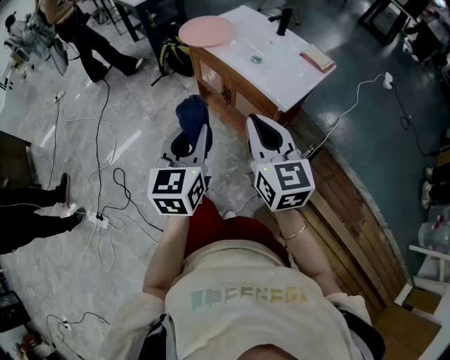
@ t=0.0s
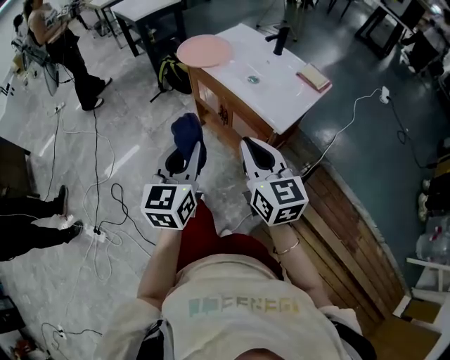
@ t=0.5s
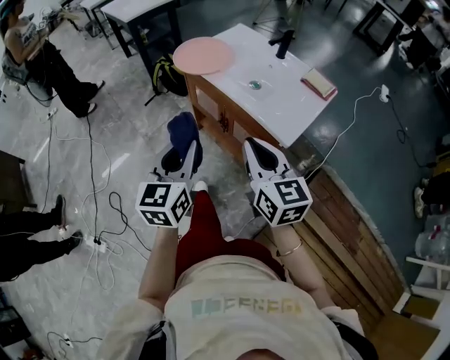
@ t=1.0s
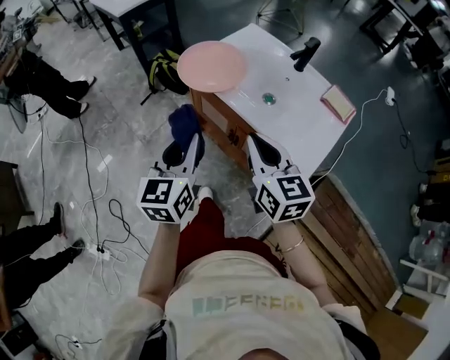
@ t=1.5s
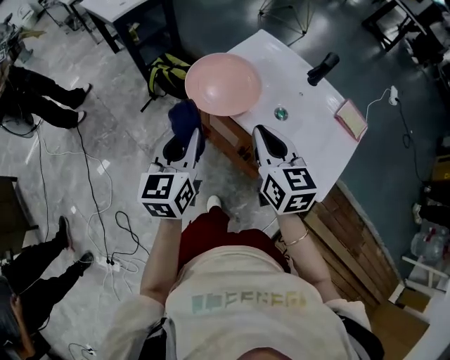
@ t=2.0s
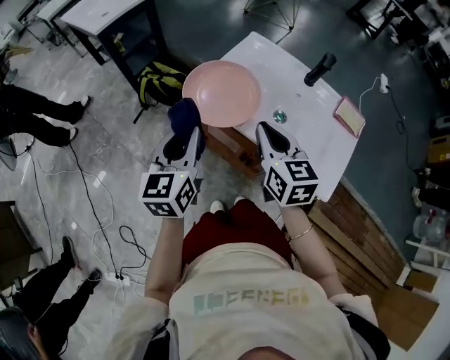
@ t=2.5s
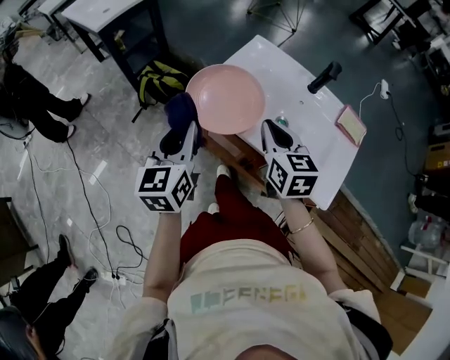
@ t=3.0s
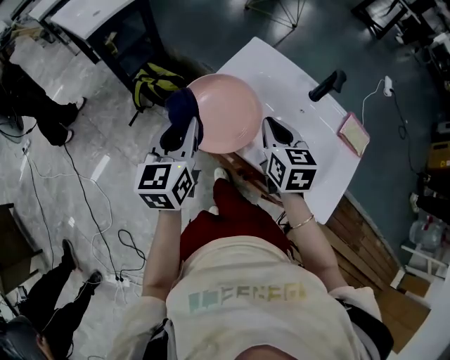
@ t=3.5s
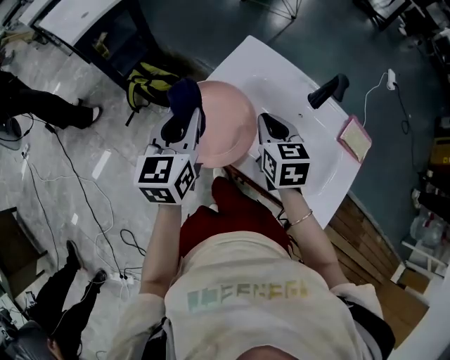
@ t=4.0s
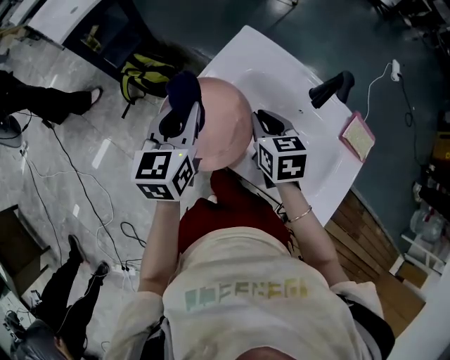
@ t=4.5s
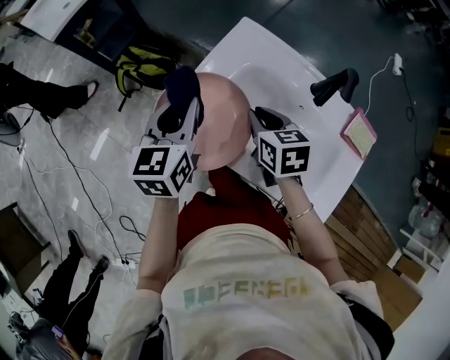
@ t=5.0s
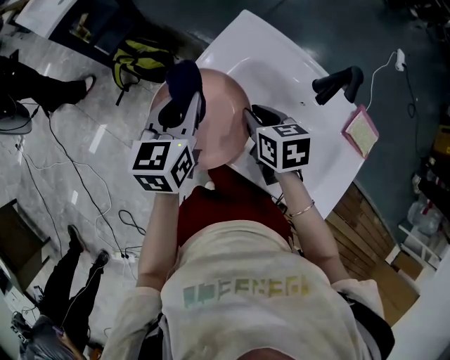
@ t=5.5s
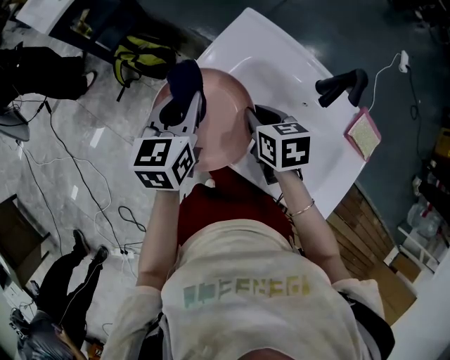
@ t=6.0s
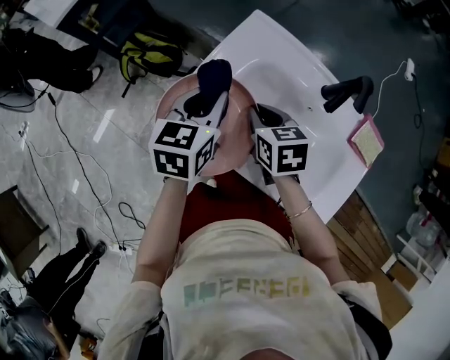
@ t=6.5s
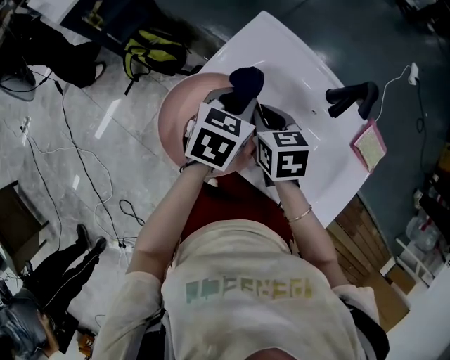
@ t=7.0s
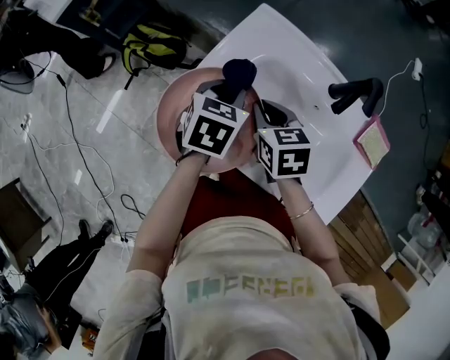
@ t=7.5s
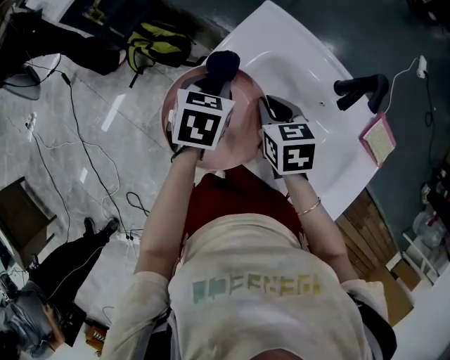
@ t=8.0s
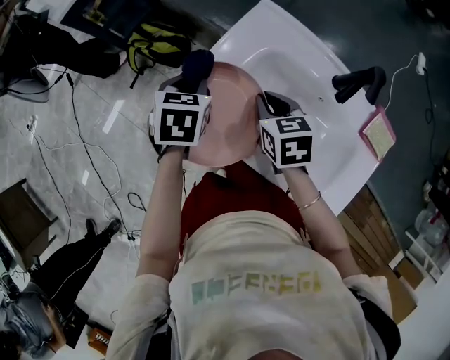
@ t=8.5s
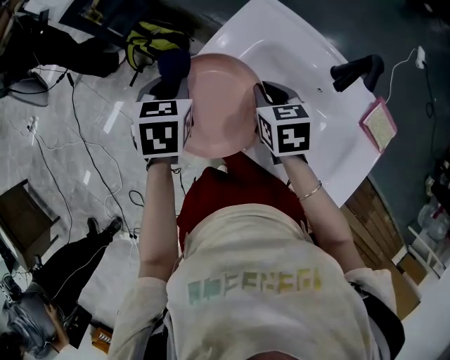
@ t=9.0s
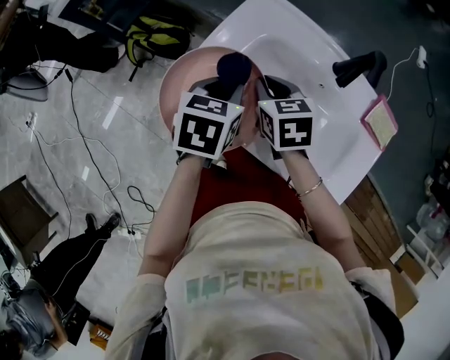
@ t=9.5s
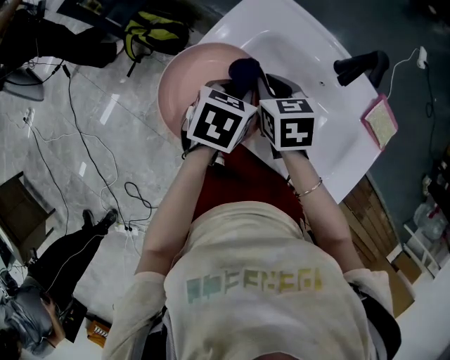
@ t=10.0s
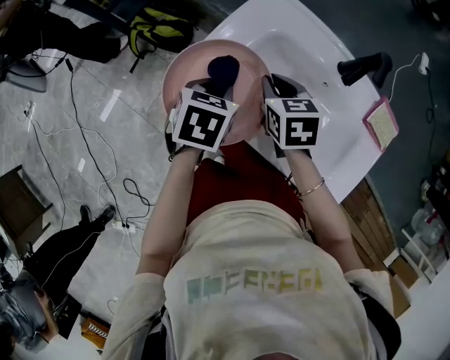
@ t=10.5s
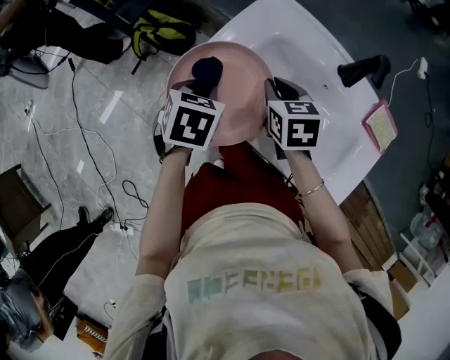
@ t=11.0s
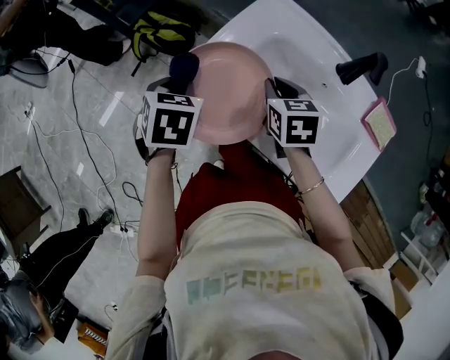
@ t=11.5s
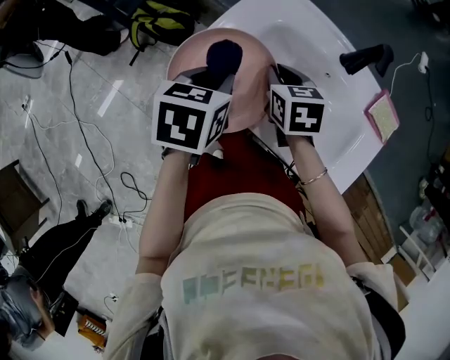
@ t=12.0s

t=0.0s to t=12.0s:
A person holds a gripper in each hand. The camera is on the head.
t=0.0s to t=2.0s: Both grippers are carried forward, roughly 40 cm.
t=2.0s to t=4.0s: Both grippers move forward, roughly 25 cm. The right gripper turns by approximately 20 degrees.
t=4.0s to t=6.0s: The left gripper moves downward and forward, about 10 cm, while the right gripper travels downward by about 10 cm, and rotates some 20 degrees.
t=6.0s to t=8.0s: The left gripper goes some 5 cm downward, travels to the right and back again, roughly 10 cm each way, and turns by roughly 30 degrees.
t=8.0s to t=10.0s: The left gripper shifts roughly 10 cm backward and to the right.
t=10.0s to t=12.0s: The left gripper shifts some 10 cm to the left and upward.

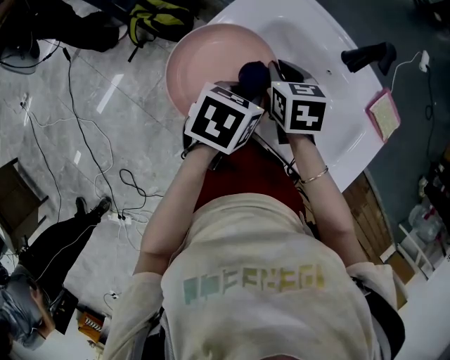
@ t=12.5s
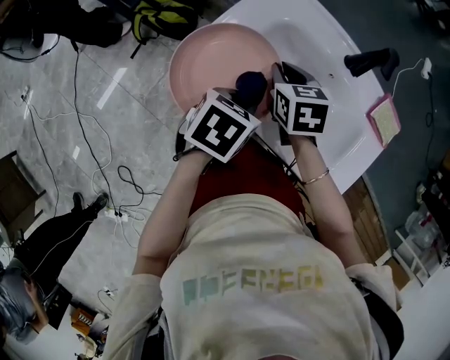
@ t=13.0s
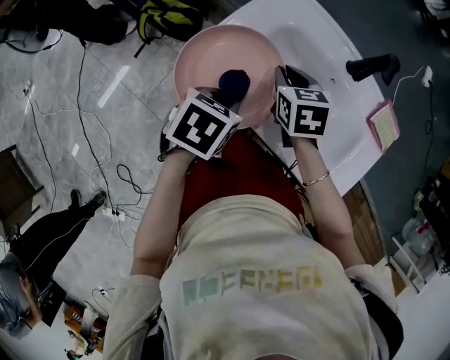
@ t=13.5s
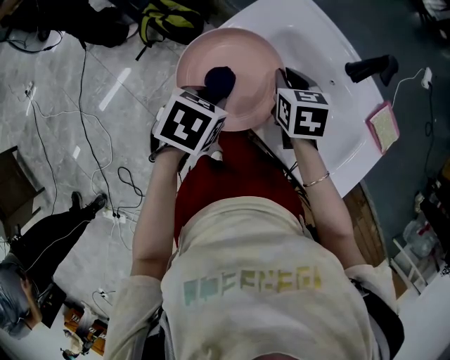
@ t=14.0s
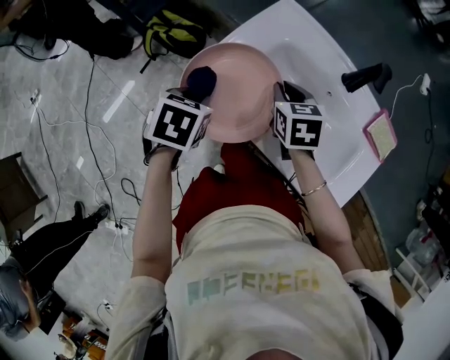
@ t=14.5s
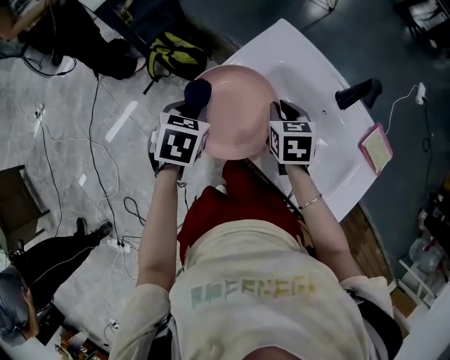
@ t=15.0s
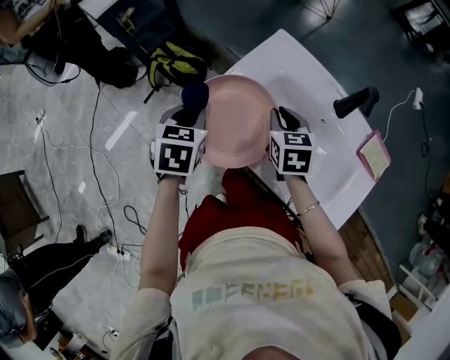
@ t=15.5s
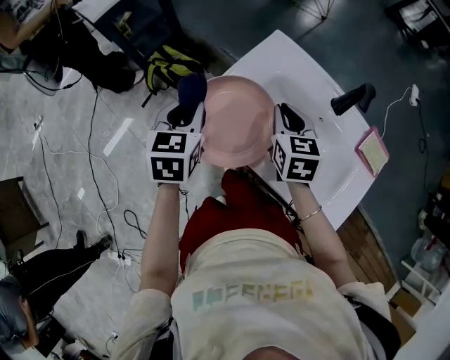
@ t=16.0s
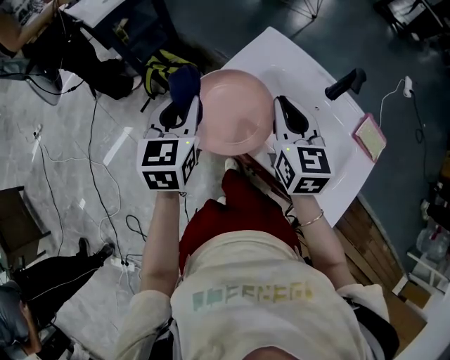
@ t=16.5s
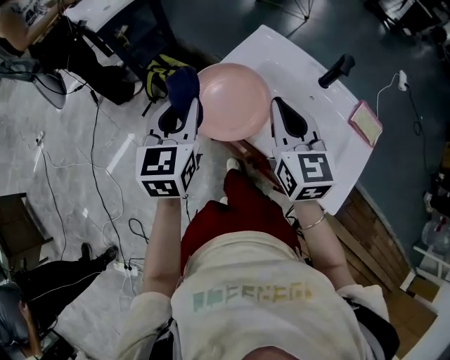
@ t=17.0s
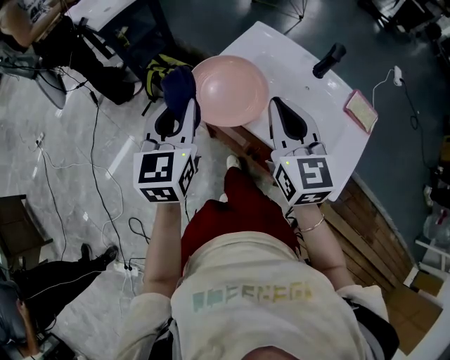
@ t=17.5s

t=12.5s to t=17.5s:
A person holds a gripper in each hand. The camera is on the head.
t=12.5s to t=15.0s: The left gripper goes about 15 cm to the left, and changes its angle by roughly 30 degrees.
t=15.0s to t=17.5s: The two grippers go about 25 cm upward and backward. The left gripper tips its fingers upward by some 40 degrees, while the right gripper angles its fingers upward, by some 40 degrees.

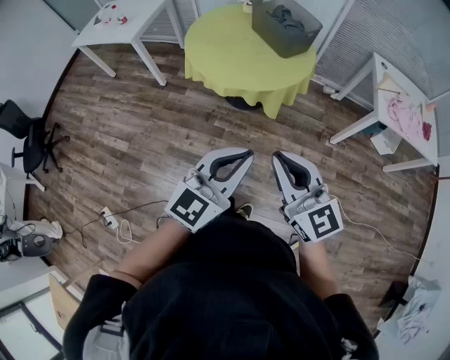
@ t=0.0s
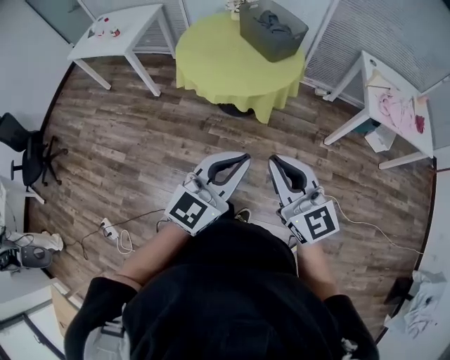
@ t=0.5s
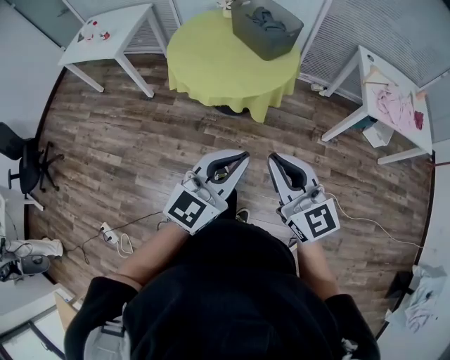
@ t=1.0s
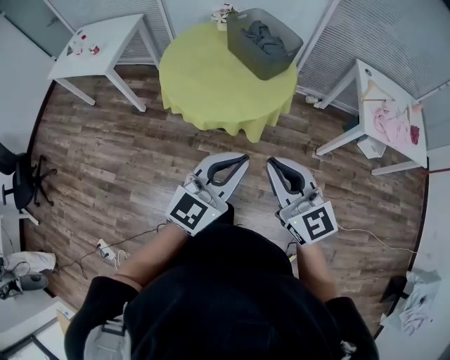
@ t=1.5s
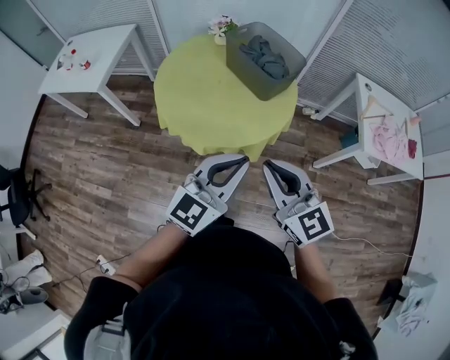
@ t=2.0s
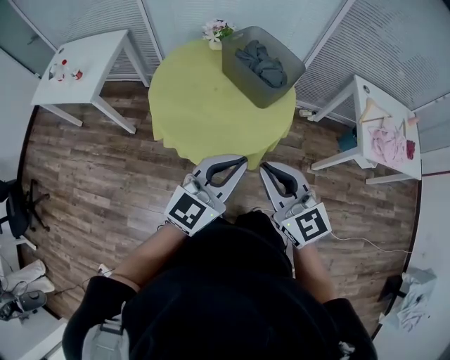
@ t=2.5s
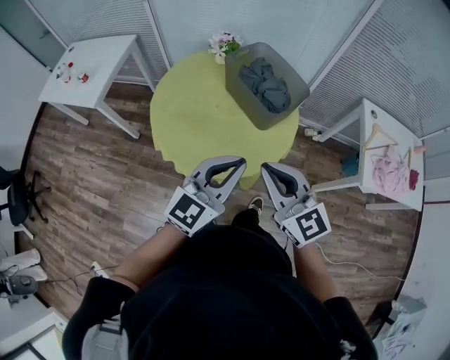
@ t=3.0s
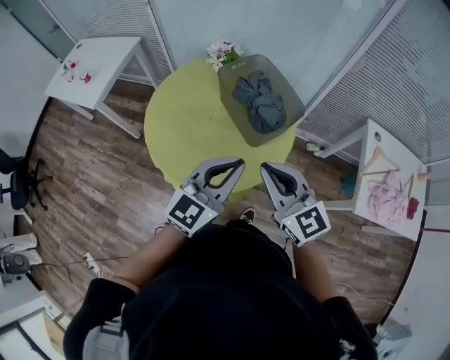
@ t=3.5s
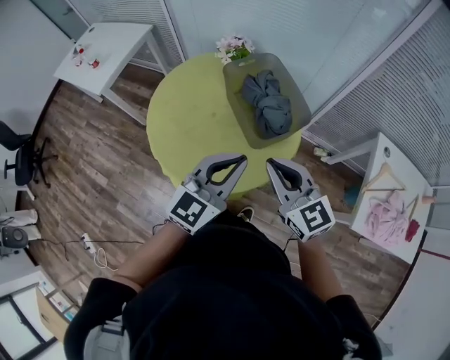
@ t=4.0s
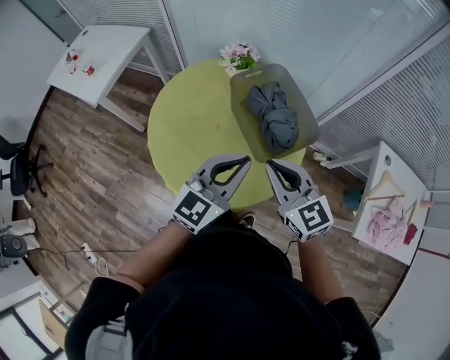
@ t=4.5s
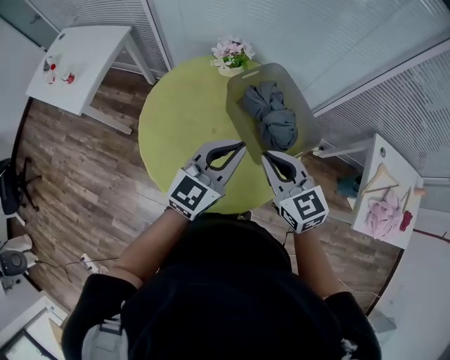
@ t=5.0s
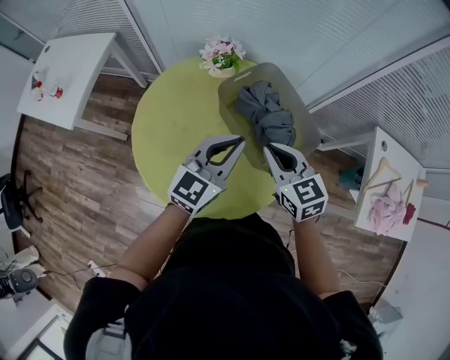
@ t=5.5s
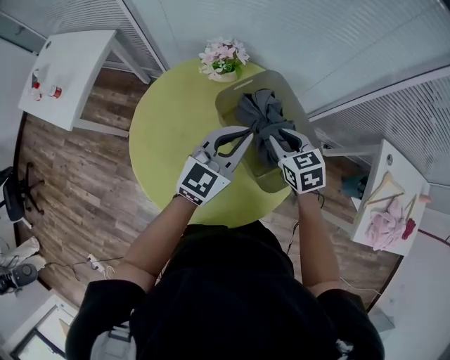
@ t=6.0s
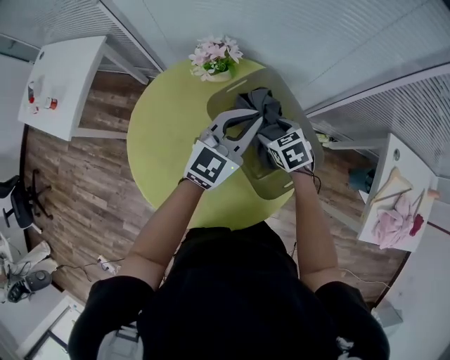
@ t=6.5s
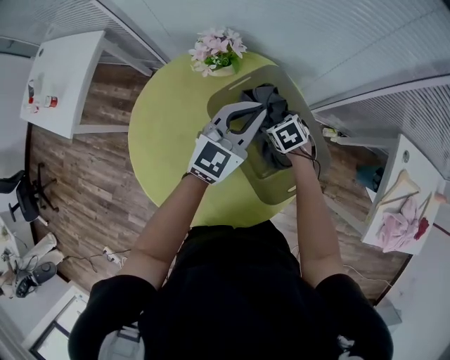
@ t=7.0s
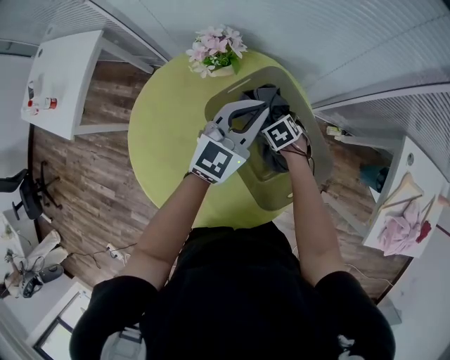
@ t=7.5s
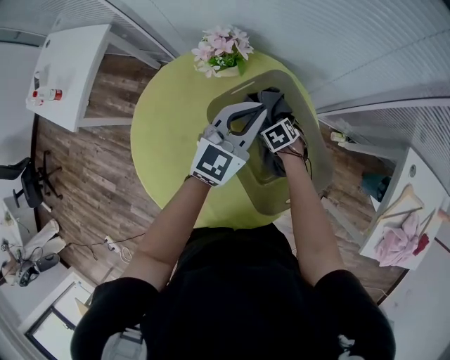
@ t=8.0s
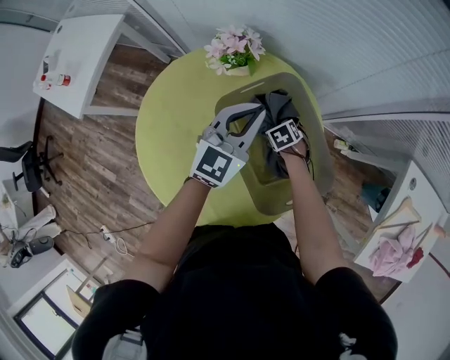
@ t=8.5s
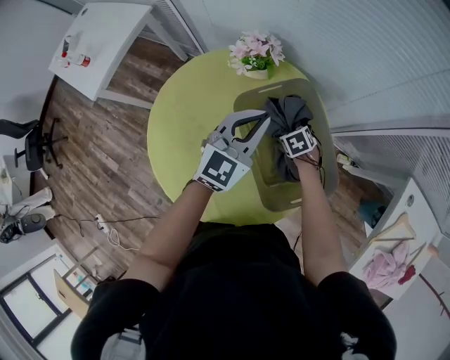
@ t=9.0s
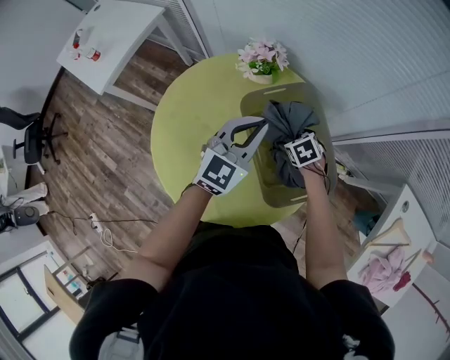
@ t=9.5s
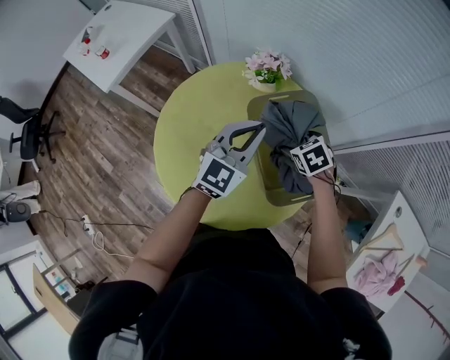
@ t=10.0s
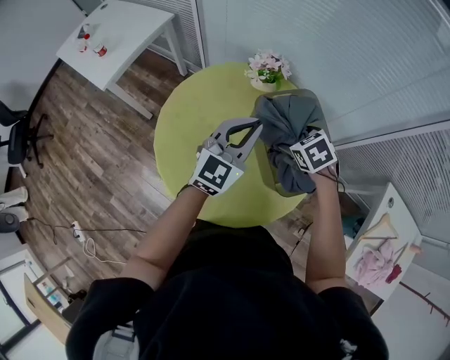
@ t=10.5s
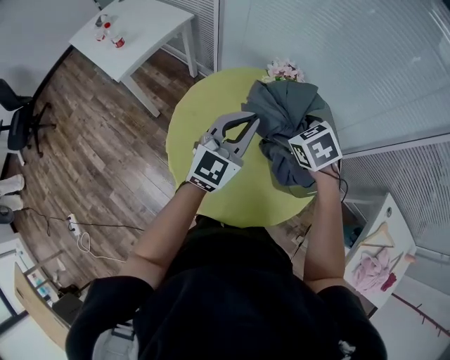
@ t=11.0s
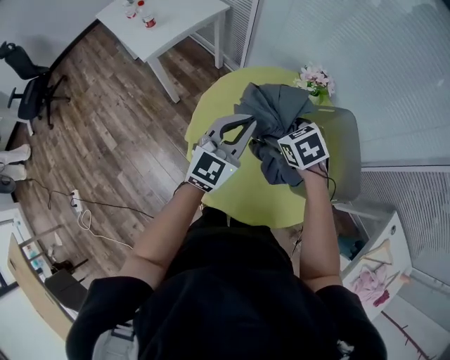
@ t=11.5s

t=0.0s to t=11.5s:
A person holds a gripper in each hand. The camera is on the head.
t=0.0s to t=2.0s: The two grippers go roughly 25 cm forward.
t=2.0s to t=4.0s: Both grippers travel together forward and to the right, approximately 30 cm.
t=4.0s to t=6.0s: The left gripper goes about 25 cm forward, while the right gripper shifts approximately 35 cm forward and downward, and tilts its fingers some 30 degrees downward.
t=6.0s to t=7.5s: The right gripper heads downward, covering roughly 20 cm, rotates approximately 30 degrees, and opens. Meanwhile the left gripper is displaced forward, downward and to the right by roughly 15 cm.
t=7.5s to t=9.5s: The right gripper goes roughly 5 cm upward. The left gripper moves to the left and backward, roughly 10 cm.
t=9.5s to t=11.5s: The right gripper travels to the left and upward by roughly 35 cm, while the left gripper heads to the left, covering about 25 cm.
